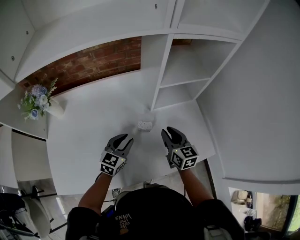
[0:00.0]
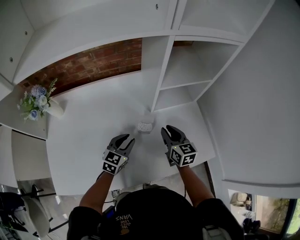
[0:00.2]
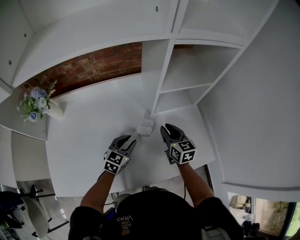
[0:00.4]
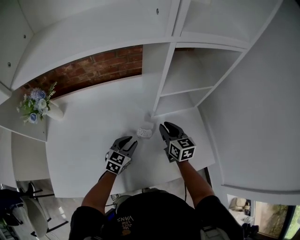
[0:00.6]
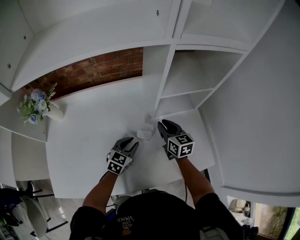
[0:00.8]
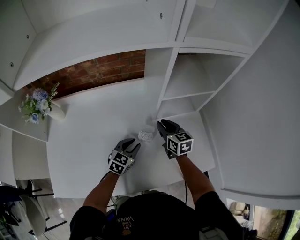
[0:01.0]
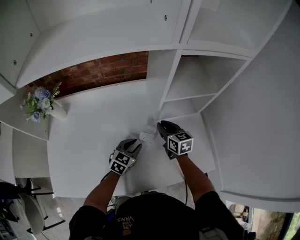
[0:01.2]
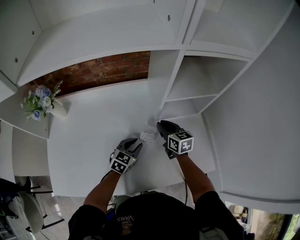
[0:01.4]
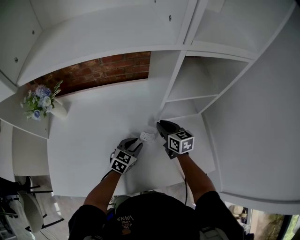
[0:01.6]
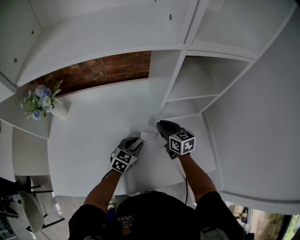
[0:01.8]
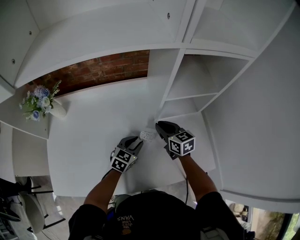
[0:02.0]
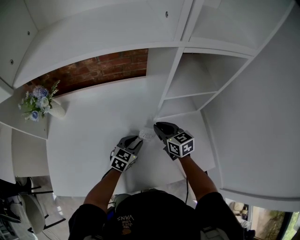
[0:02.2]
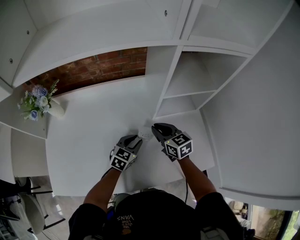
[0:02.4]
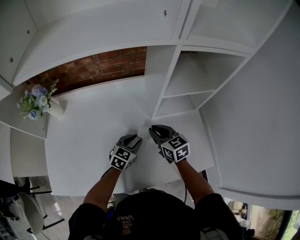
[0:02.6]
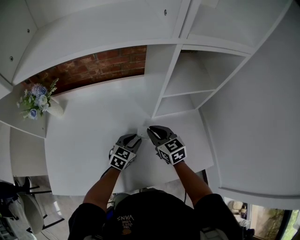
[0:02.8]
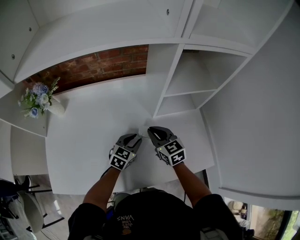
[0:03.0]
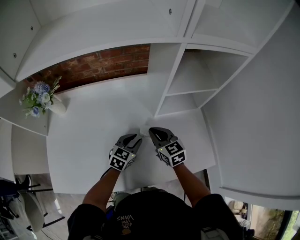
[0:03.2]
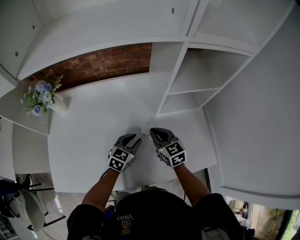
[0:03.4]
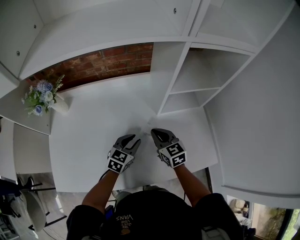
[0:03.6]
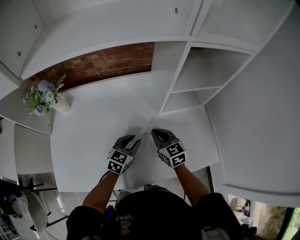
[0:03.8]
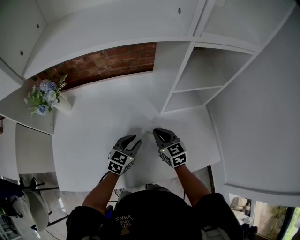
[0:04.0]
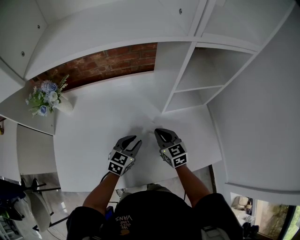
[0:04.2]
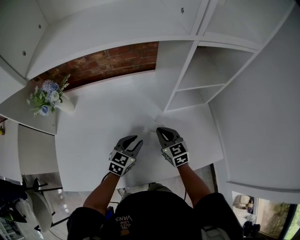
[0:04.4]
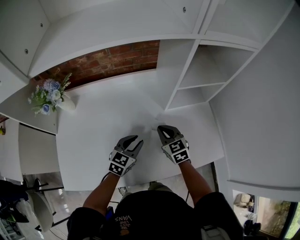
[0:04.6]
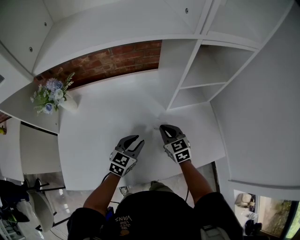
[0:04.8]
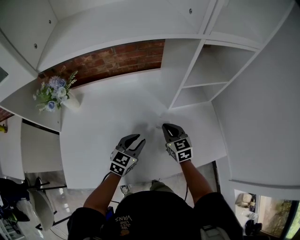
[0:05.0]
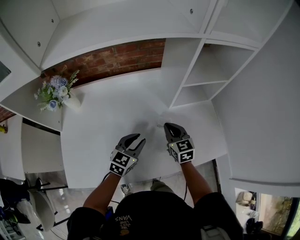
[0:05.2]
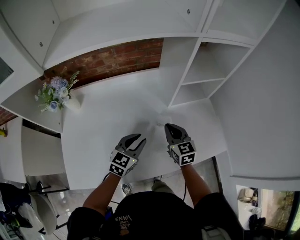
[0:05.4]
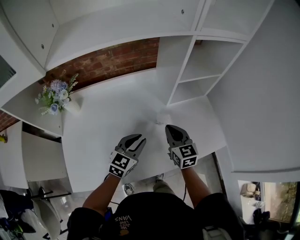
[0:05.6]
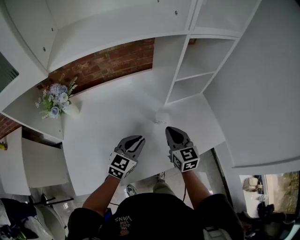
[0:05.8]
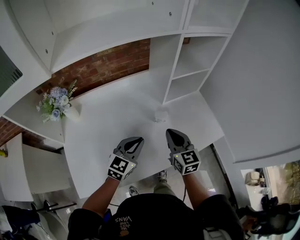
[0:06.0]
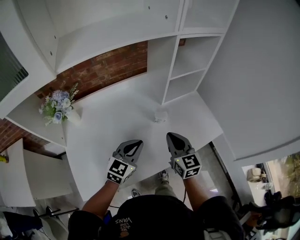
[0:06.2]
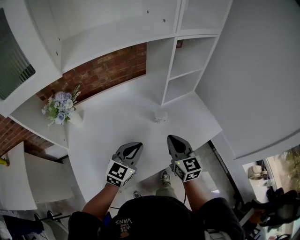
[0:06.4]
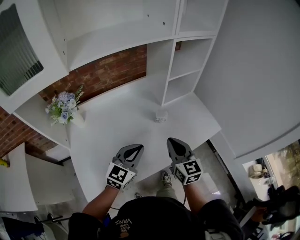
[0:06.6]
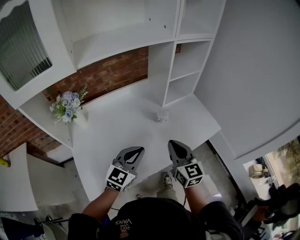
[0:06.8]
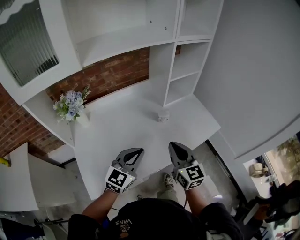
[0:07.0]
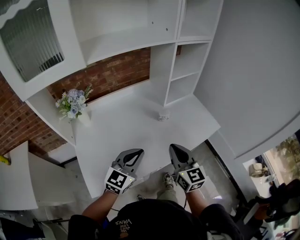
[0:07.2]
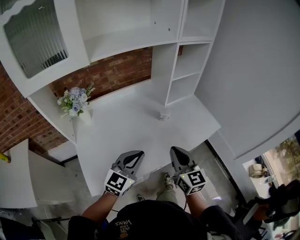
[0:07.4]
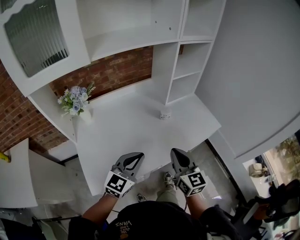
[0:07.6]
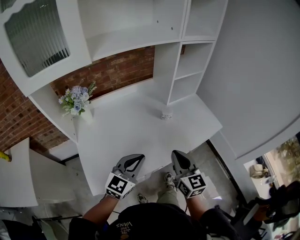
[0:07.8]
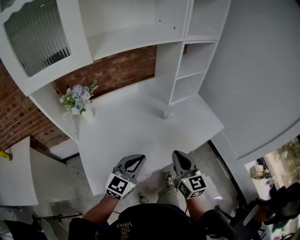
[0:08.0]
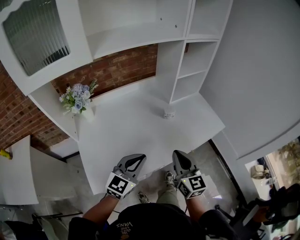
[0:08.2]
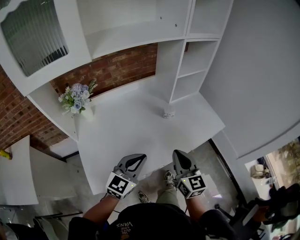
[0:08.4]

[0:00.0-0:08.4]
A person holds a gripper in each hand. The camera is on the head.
0:00.0 to 0:01.4: The left gripper shifts by some 5 cm, while the right gripper heads forward, covering approximately 10 cm.
0:01.4 to 0:02.8: The right gripper travels backward by approximately 5 cm.
0:02.8 to 0:04.2: The left gripper heads to the left, covering approximately 5 cm.
0:04.2 to 0:05.6: The right gripper moves upward, roughly 5 cm, while the left gripper travels upward and backward by some 10 cm.
0:05.6 to 0:07.0: Both grippers travel together backward and upward, approximately 20 cm.
0:07.0 to 0:08.4: The grippers move only a little.

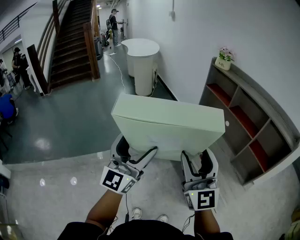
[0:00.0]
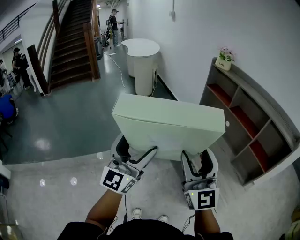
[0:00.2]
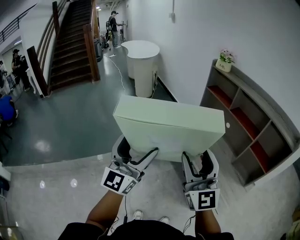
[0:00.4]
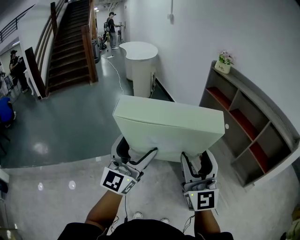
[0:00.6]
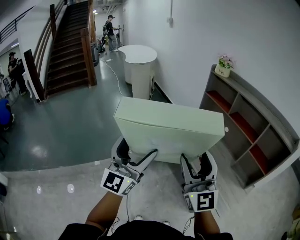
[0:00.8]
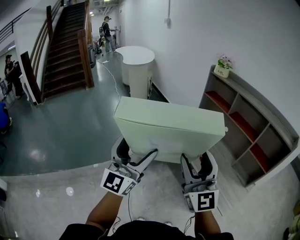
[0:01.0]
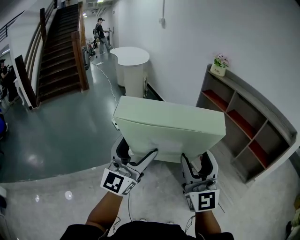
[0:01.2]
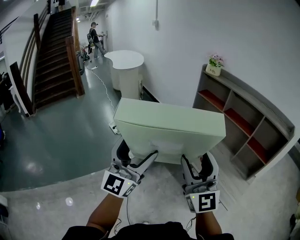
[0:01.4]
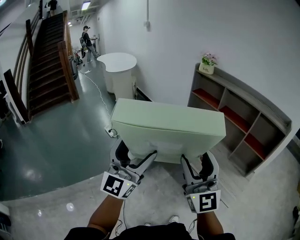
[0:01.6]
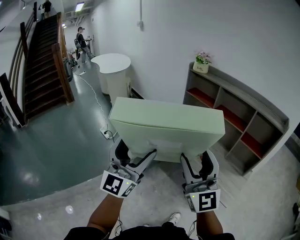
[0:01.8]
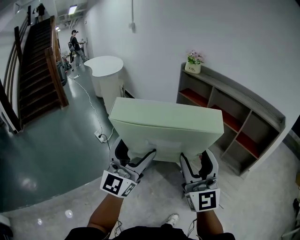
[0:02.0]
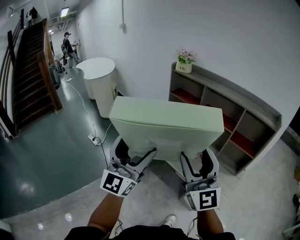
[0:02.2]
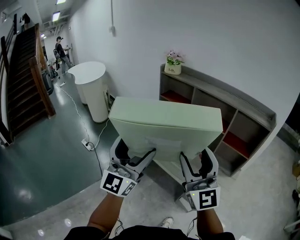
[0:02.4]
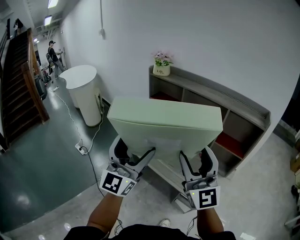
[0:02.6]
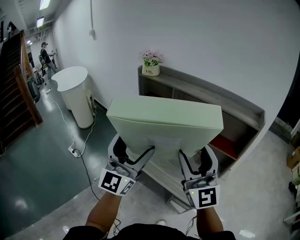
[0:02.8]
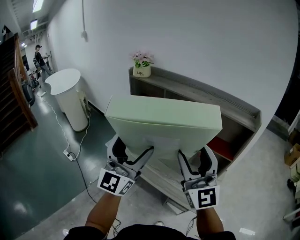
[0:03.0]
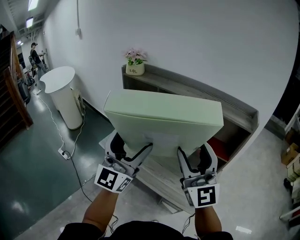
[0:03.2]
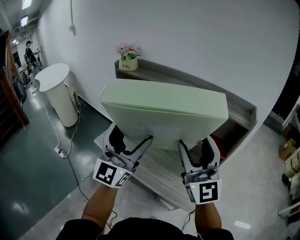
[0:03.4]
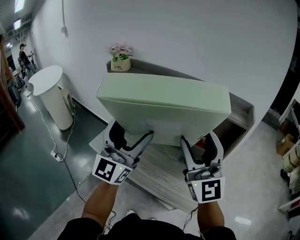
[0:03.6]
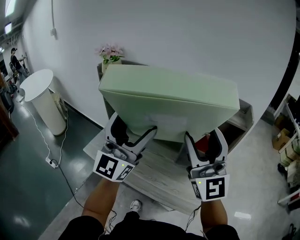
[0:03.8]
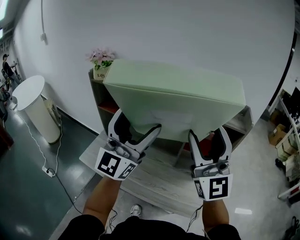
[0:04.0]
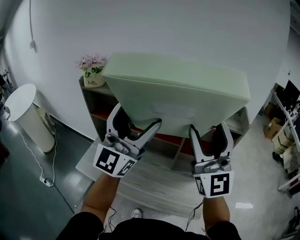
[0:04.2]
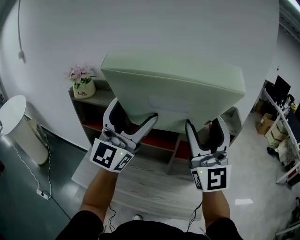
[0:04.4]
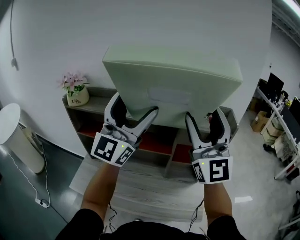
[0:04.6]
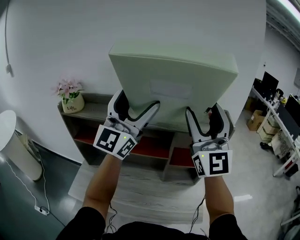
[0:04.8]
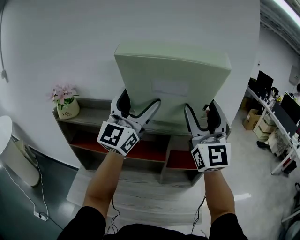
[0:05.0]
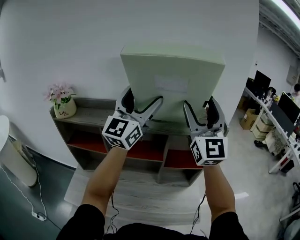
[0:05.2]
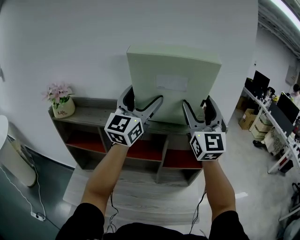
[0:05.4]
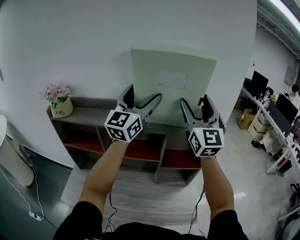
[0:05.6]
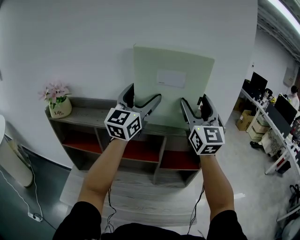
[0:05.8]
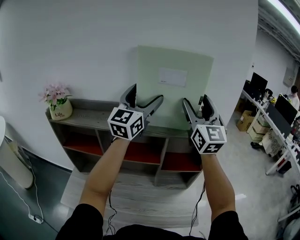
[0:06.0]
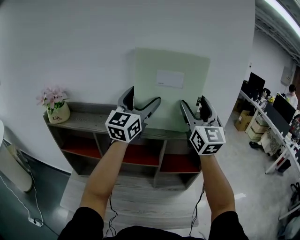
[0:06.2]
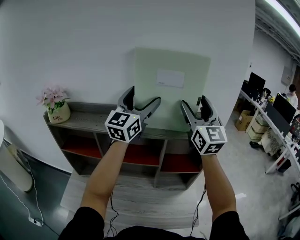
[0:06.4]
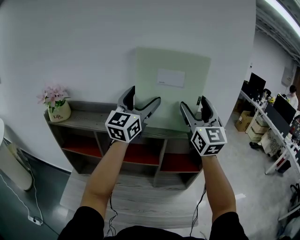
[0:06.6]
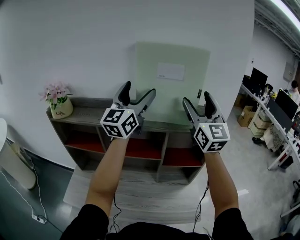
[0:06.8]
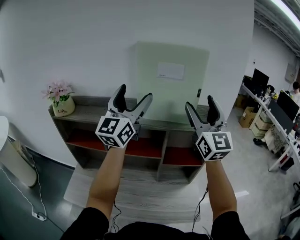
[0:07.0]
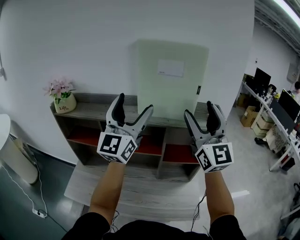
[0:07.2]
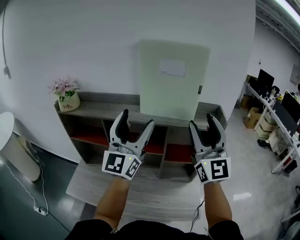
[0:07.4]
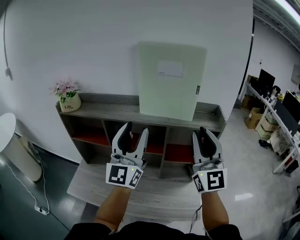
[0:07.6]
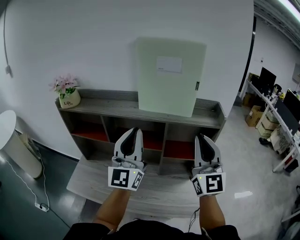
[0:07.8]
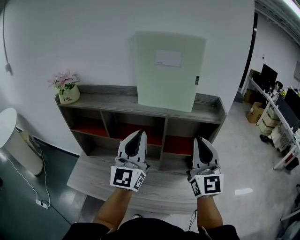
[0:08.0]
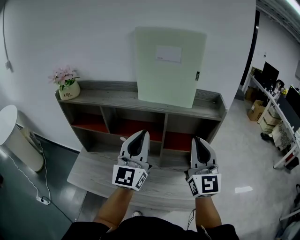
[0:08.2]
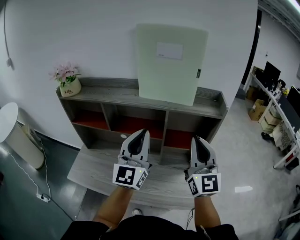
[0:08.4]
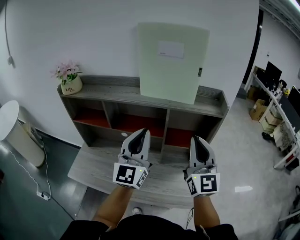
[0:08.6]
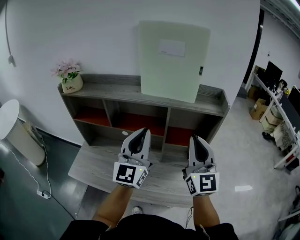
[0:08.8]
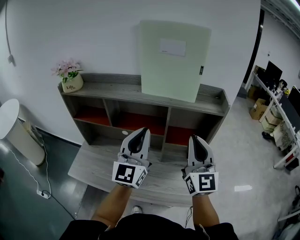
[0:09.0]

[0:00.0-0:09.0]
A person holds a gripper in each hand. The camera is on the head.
0:00.0 to 0:01.6: The grippers both shift to the left by approximately 5 cm.
0:01.6 to 0:03.0: The two grippers go approximately 30 cm to the right and forward.
0:03.0 to 0:04.4: The left gripper ends up some 30 cm from where it was, and rotates approximately 30 degrees; the right gripper moves approximately 20 cm, and rotates approximately 30 degrees.
0:04.4 to 0:06.0: Both grippers move forward, some 20 cm.
0:06.0 to 0:07.6: Both grippers travel together backward and downward, roughly 20 cm. The right gripper closes up. The left gripper closes.
0:07.6 to 0:09.0: Both grippers move downward, roughly 10 cm. The left gripper closes up.

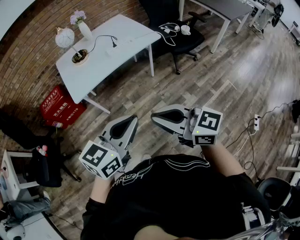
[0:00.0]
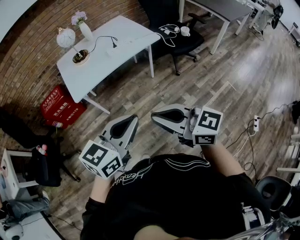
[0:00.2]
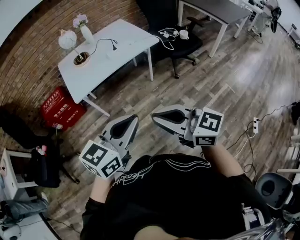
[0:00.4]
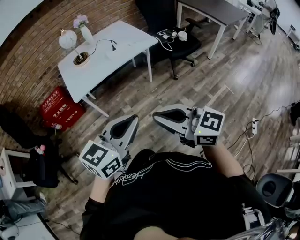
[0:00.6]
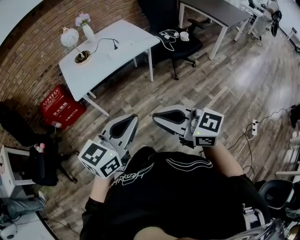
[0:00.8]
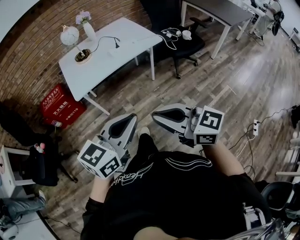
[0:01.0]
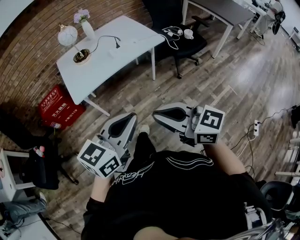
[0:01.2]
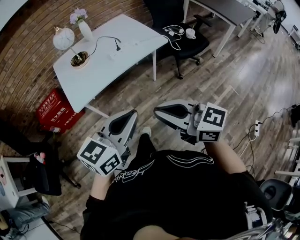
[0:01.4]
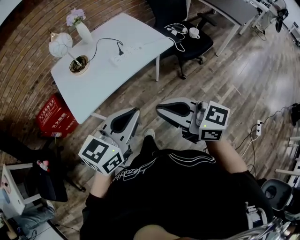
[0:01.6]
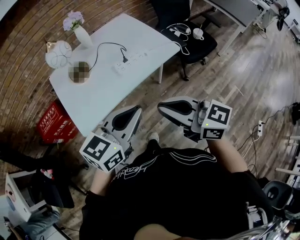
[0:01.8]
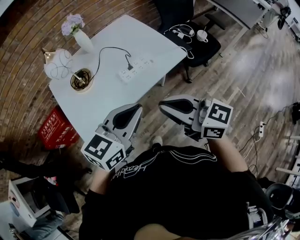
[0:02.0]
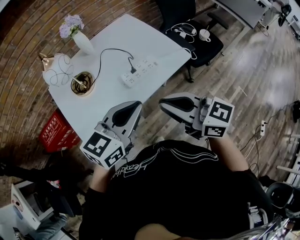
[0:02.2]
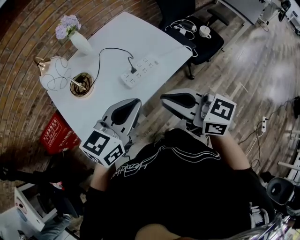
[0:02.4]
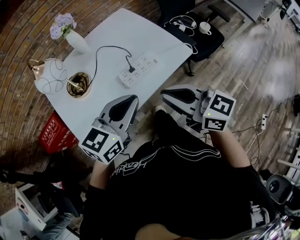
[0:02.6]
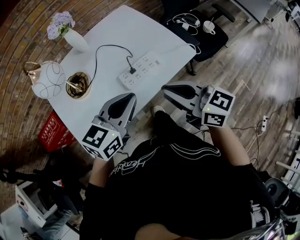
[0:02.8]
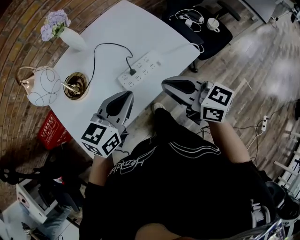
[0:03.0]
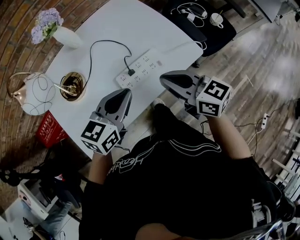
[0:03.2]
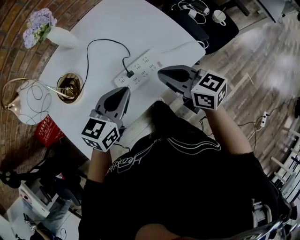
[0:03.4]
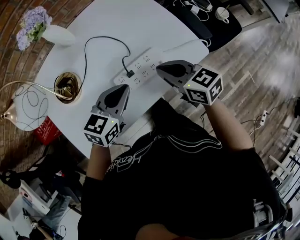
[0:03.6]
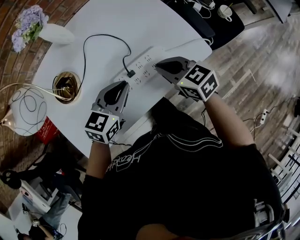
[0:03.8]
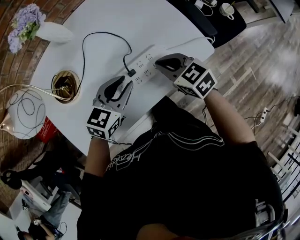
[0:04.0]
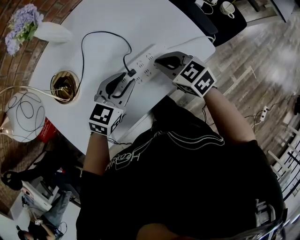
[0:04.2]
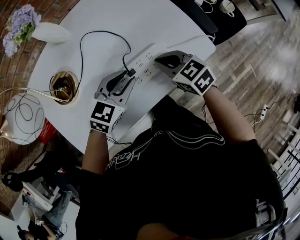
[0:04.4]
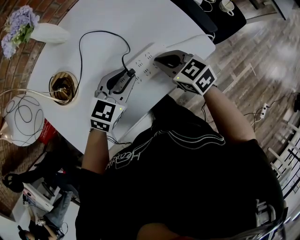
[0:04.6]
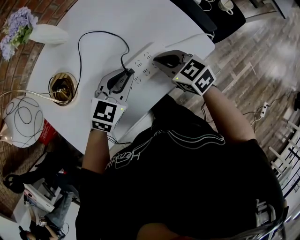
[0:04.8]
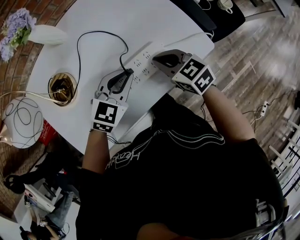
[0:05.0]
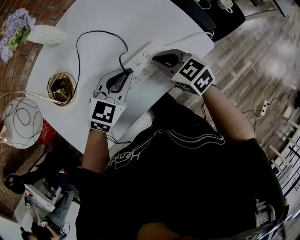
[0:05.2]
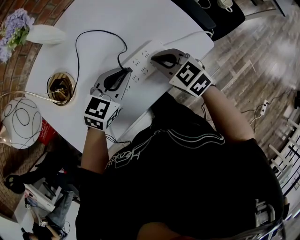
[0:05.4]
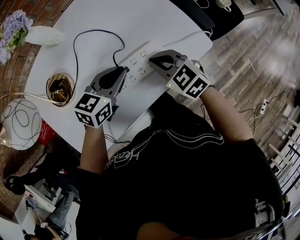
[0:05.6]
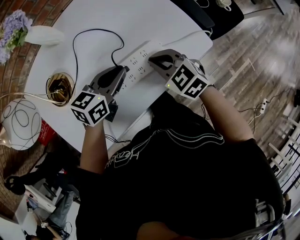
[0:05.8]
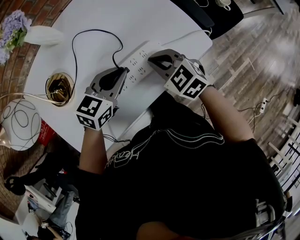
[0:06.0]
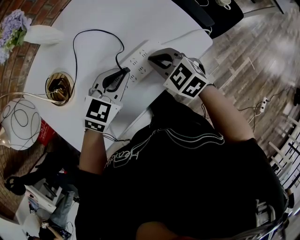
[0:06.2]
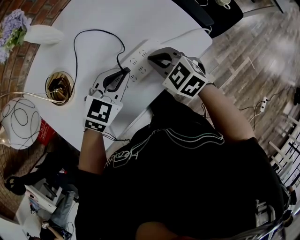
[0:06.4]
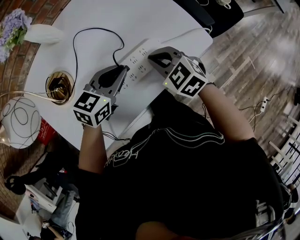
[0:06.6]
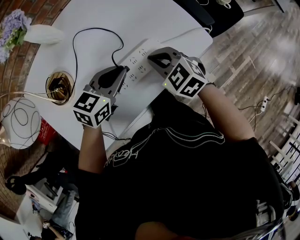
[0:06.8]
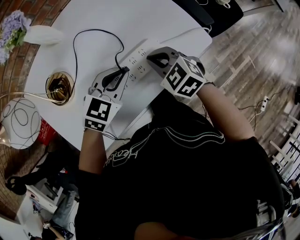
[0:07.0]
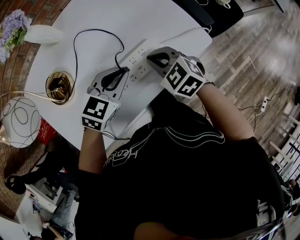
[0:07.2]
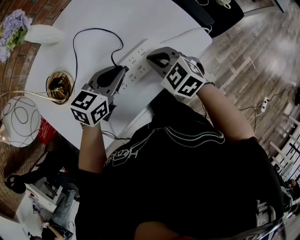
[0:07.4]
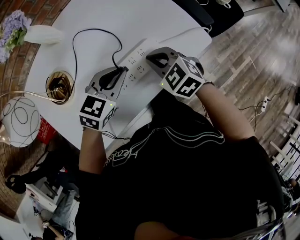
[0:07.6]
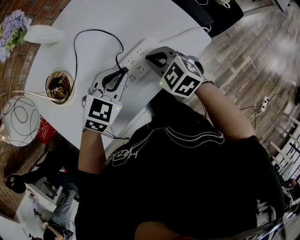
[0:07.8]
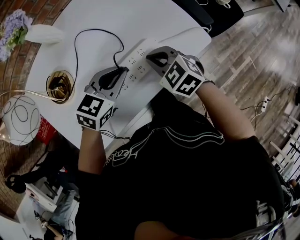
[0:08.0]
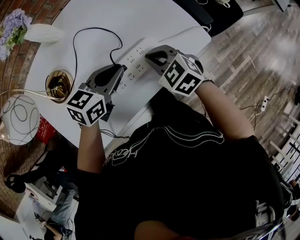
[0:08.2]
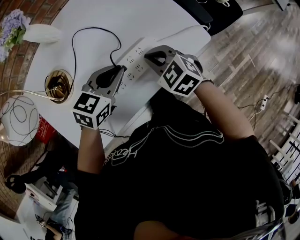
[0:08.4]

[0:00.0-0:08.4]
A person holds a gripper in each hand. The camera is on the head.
0:00.0 to 0:01.4: Both grippers move forward, some 10 cm.
0:01.4 to 0:02.8: The two grippers go some 40 cm forward.
0:02.8 to 0:04.2: The grippers both shift downward and forward by roughly 25 cm. The right gripper angles its fingers downward, by about 30 degrees, while the left gripper opens up.
0:04.2 to 0:05.6: There are only small adjustments of the grippers.
0:05.6 to 0:07.0: The left gripper changes its angle by about 20 degrees.
